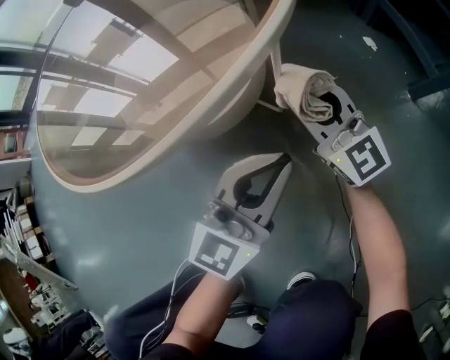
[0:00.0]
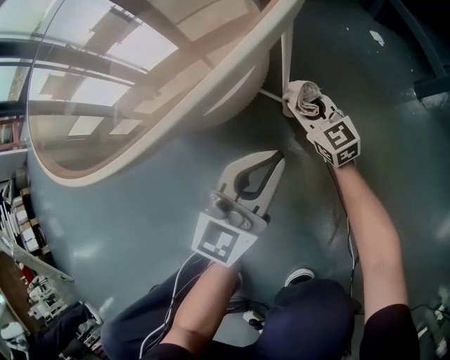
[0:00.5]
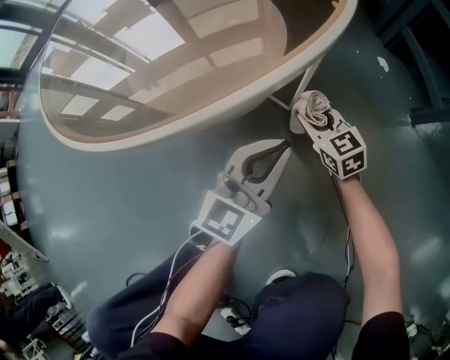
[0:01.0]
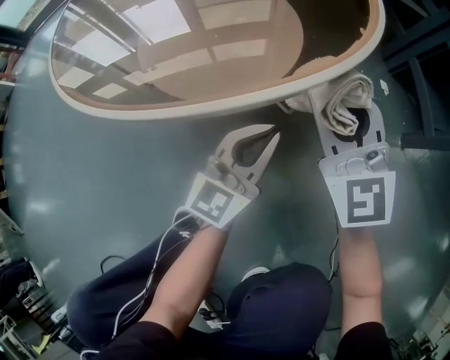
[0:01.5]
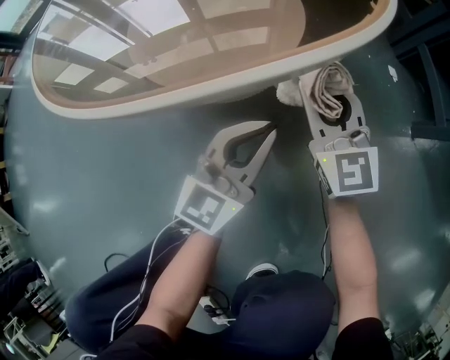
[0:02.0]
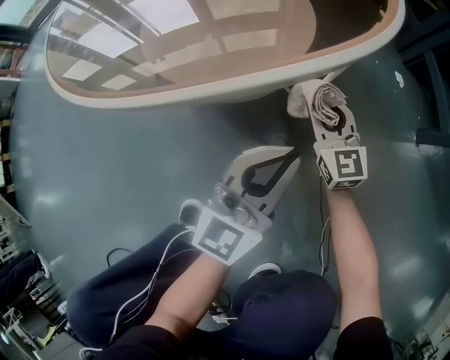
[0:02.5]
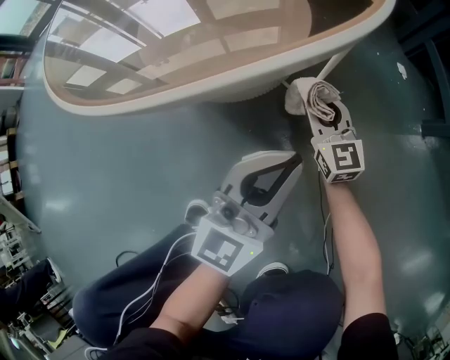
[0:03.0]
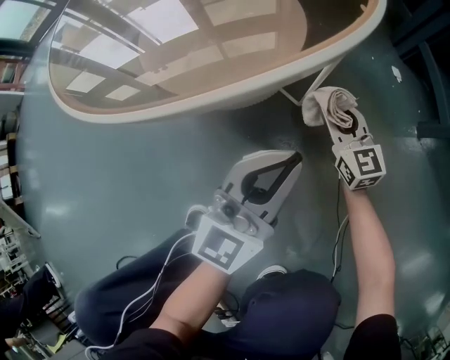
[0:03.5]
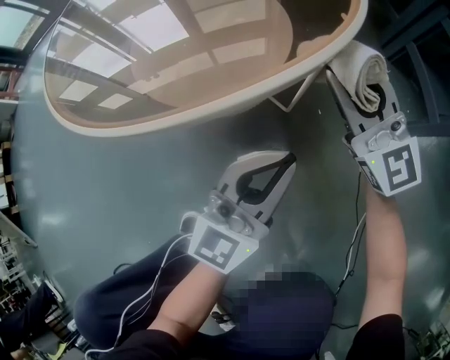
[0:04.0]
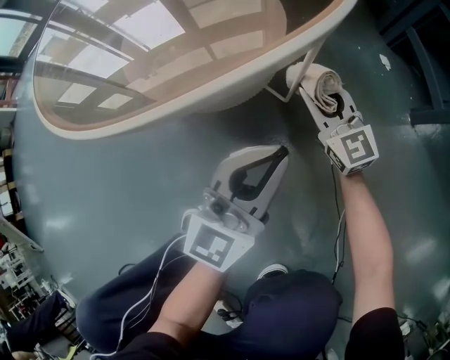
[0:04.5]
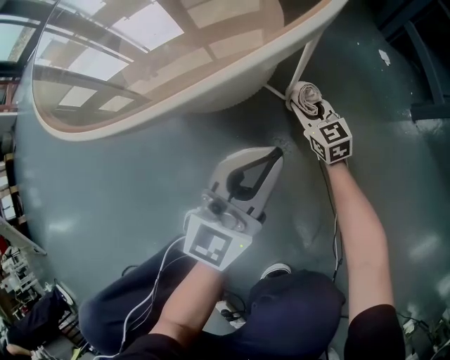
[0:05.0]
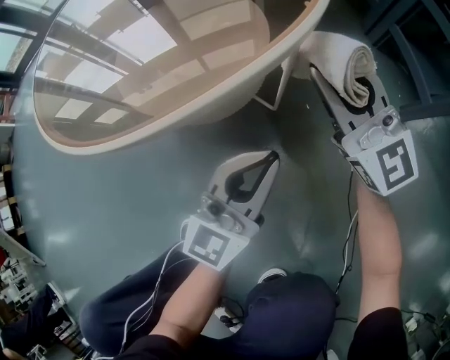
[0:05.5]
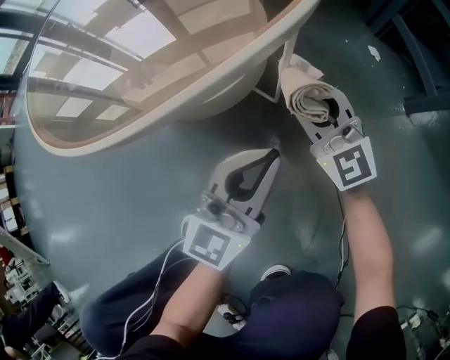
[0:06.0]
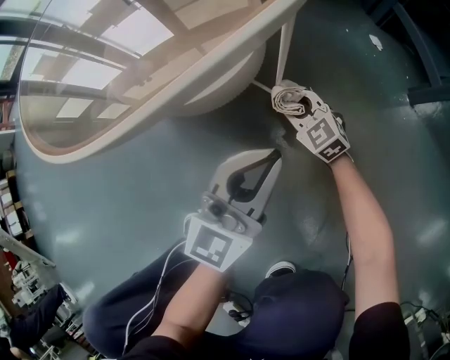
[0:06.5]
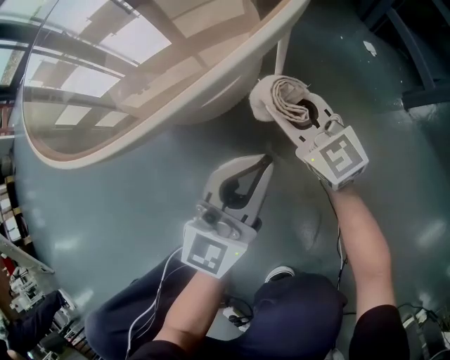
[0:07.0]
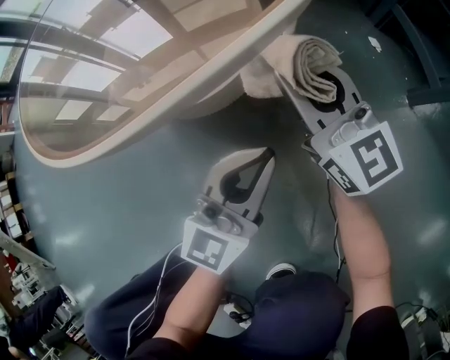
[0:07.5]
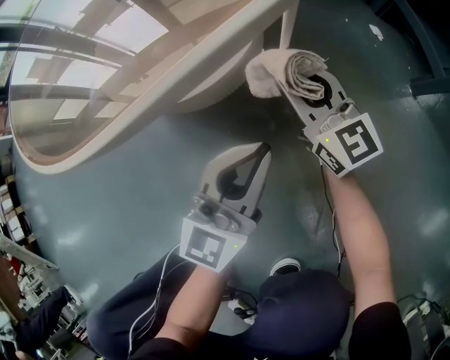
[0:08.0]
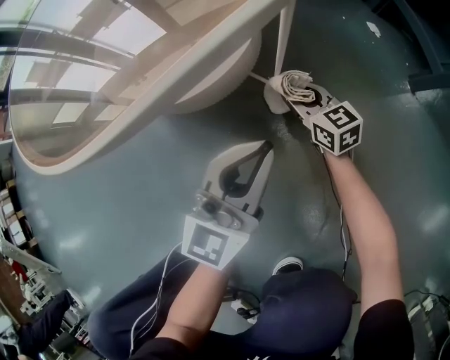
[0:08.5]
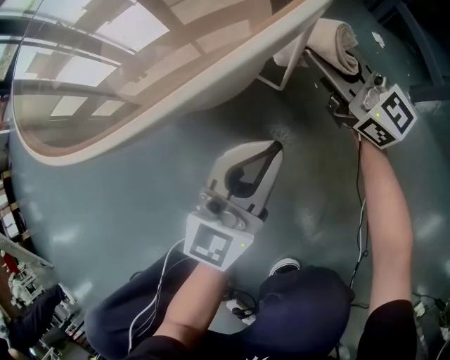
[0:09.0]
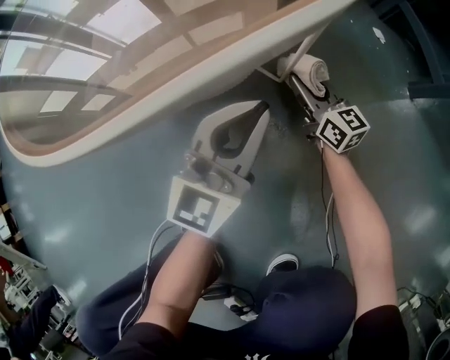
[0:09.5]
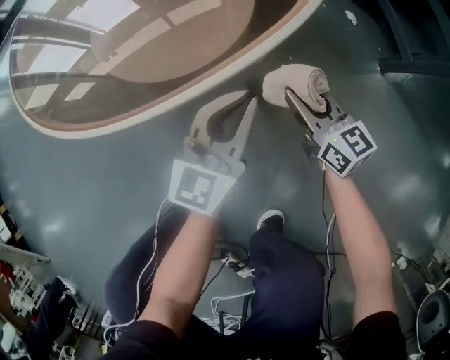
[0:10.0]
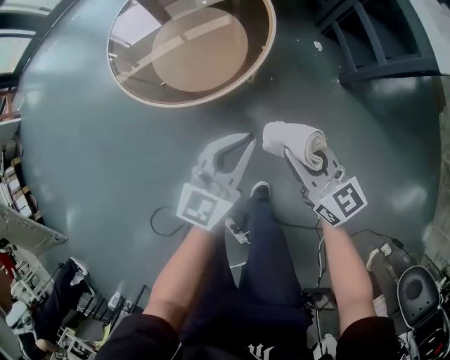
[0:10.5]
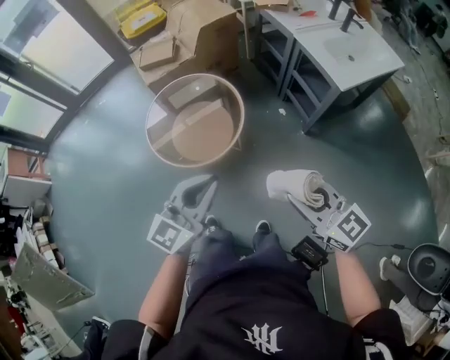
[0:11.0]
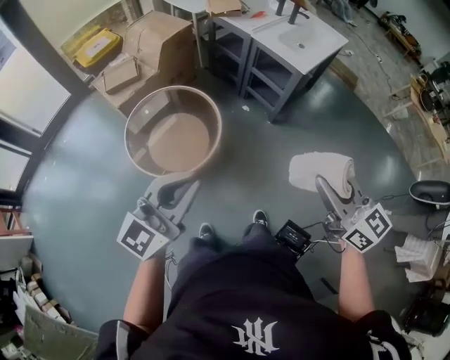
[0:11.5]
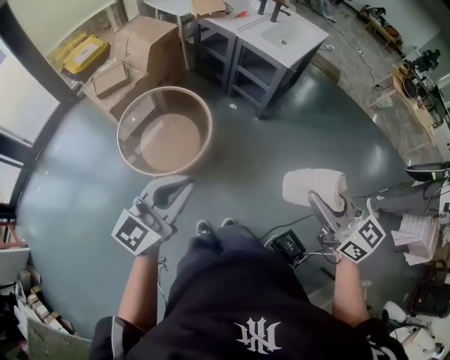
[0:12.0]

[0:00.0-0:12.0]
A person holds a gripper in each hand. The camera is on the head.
0:00.0 to 0:02.0: The left gripper is displaced to the left and downward by approximately 10 cm; the right gripper moves up and down over about 30 cm, changing direction 2 times.
0:02.0 to 0:04.0: Both grippers move upward, about 10 cm.
0:04.0 to 0:06.0: The right gripper goes up and down, some 30 cm each way, reversing 2 times.
0:06.0 to 0:08.0: The right gripper moves up and down over approximately 25 cm, changing direction 2 times, and swivels roughly 30 degrees.
0:08.0 to 0:10.0: The left gripper travels upward by some 5 cm. Meanwhile the right gripper swings up and down, roughly 20 cm each way, with 3 reversals, and swivels about 20 degrees.
0:10.0 to 0:12.0: Both grippers travel together upward, roughly 90 cm. The right gripper rotates approximately 30 degrees. The left gripper turns by some 50 degrees.

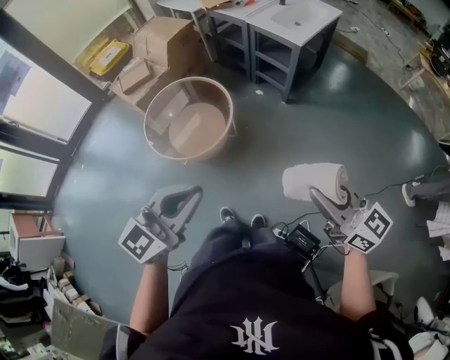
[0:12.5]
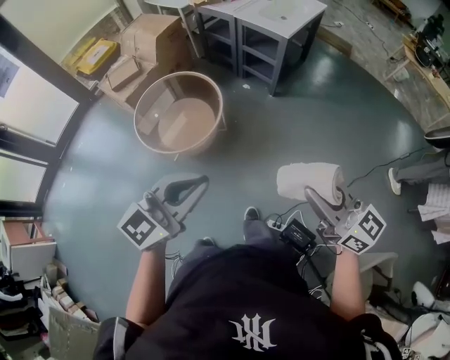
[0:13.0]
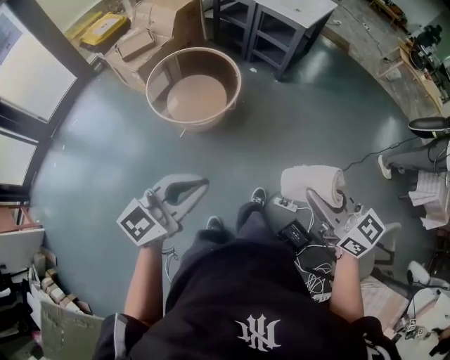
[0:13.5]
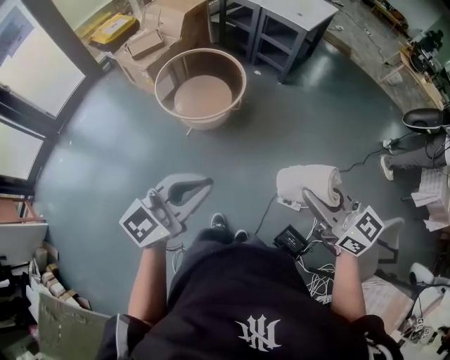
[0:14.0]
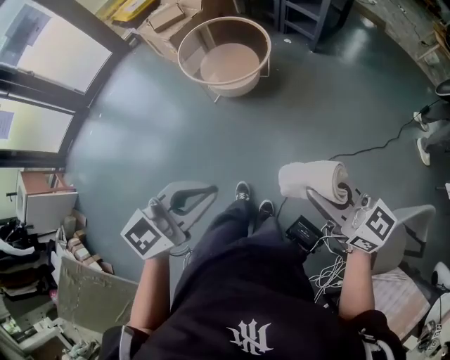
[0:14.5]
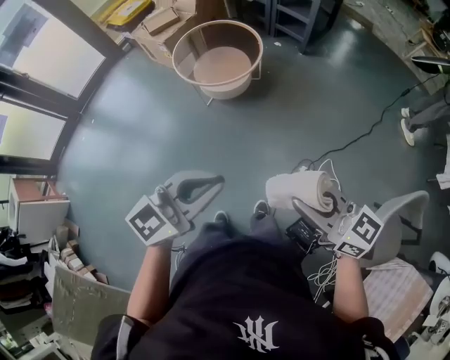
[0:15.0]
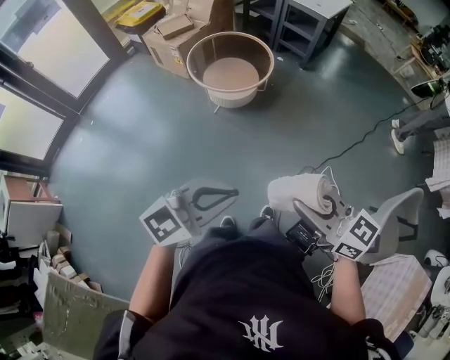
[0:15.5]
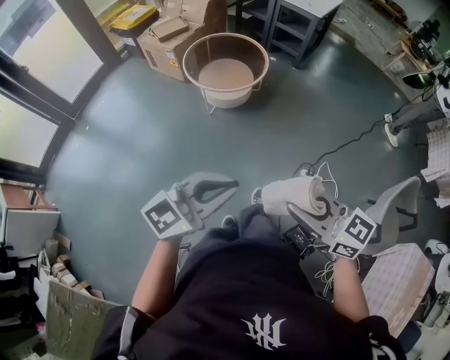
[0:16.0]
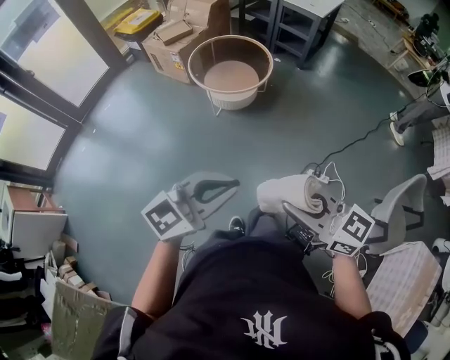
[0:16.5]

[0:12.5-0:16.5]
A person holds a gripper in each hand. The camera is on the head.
0:12.5 to 0:14.5: Both grippers travel together backward and to the left, some 40 cm.
0:14.5 to 0:16.5: The grippers both shift to the left and backward by about 25 cm.

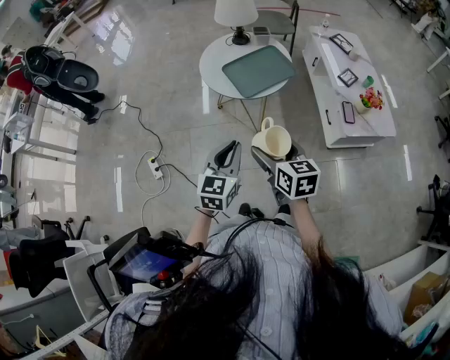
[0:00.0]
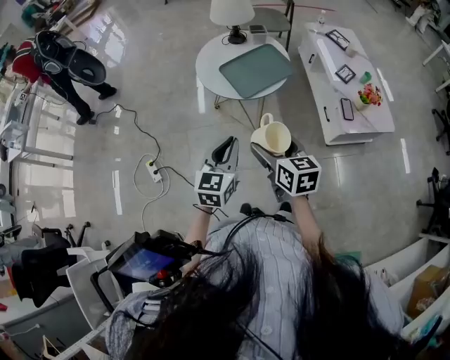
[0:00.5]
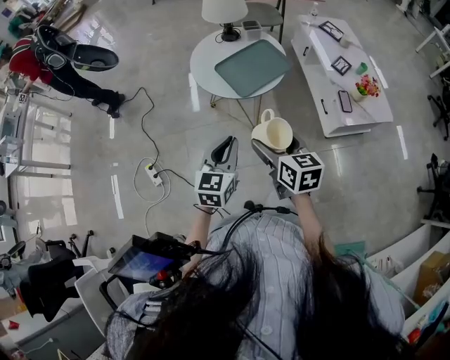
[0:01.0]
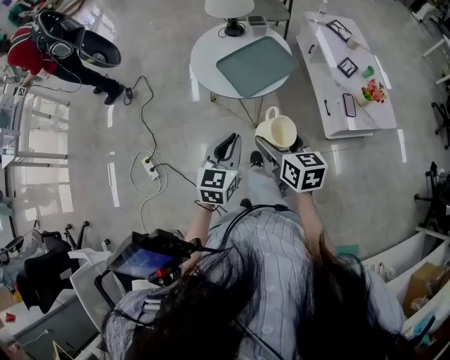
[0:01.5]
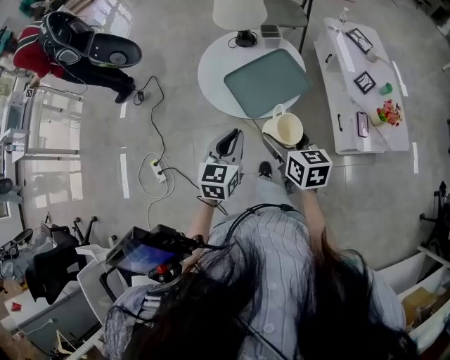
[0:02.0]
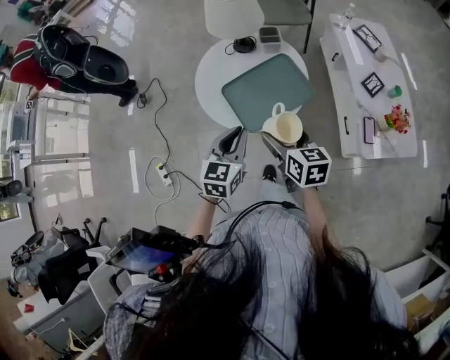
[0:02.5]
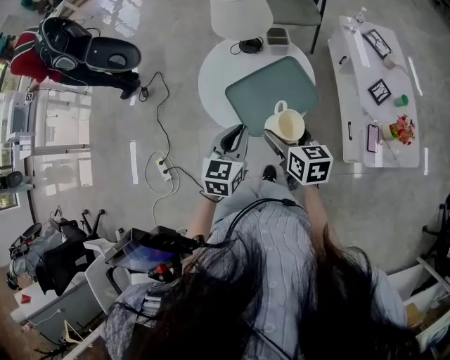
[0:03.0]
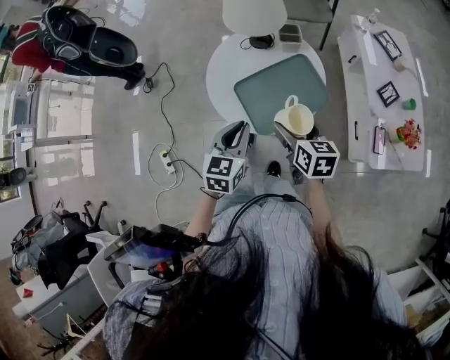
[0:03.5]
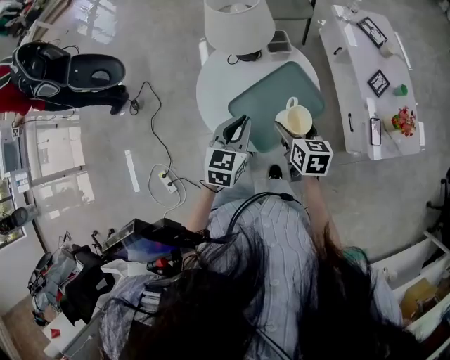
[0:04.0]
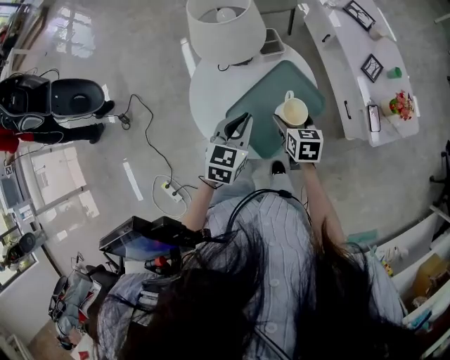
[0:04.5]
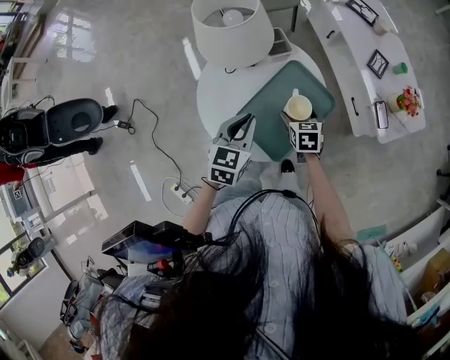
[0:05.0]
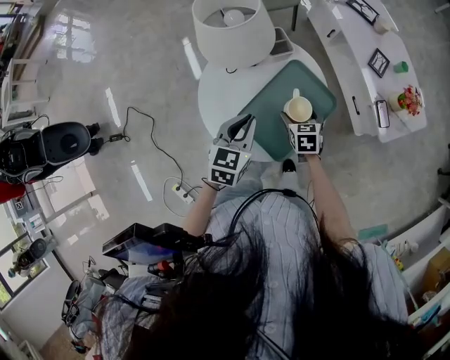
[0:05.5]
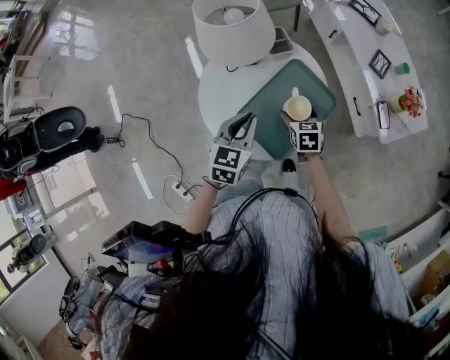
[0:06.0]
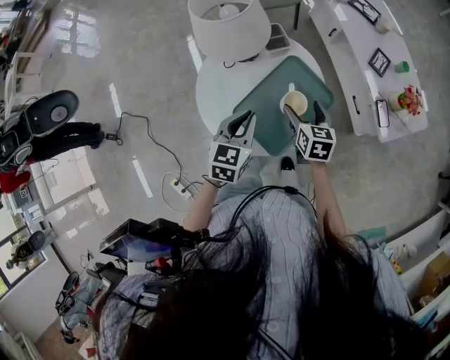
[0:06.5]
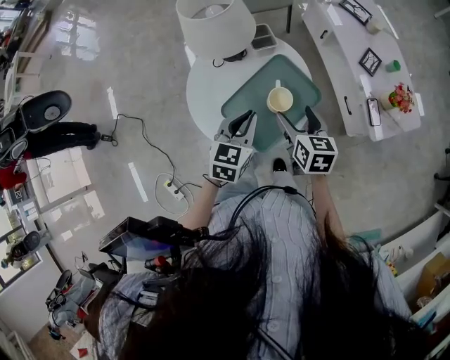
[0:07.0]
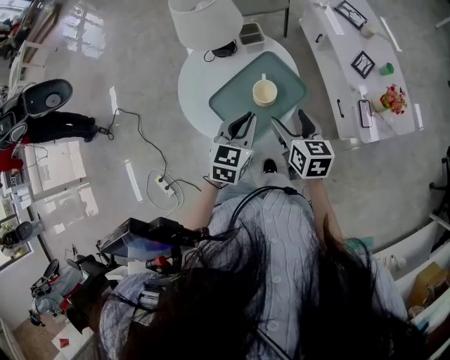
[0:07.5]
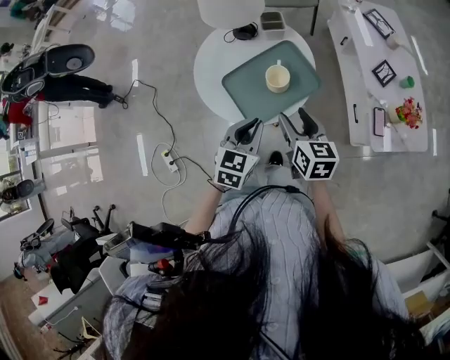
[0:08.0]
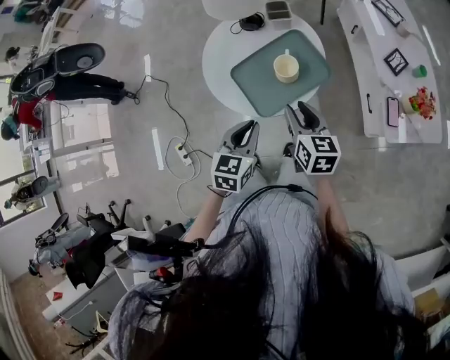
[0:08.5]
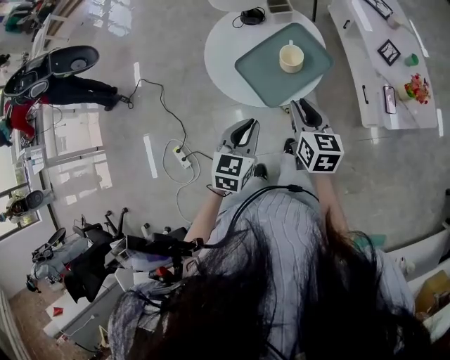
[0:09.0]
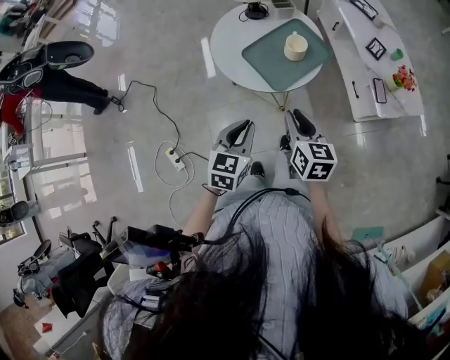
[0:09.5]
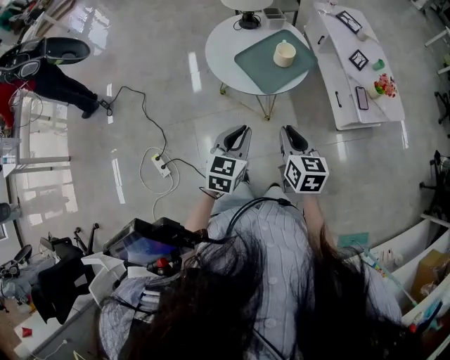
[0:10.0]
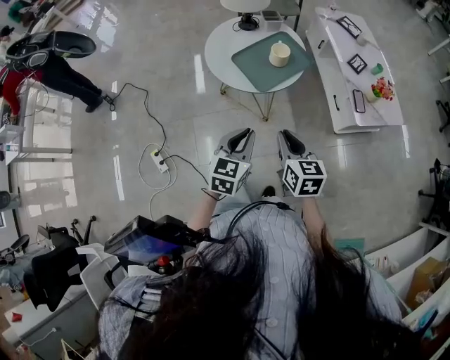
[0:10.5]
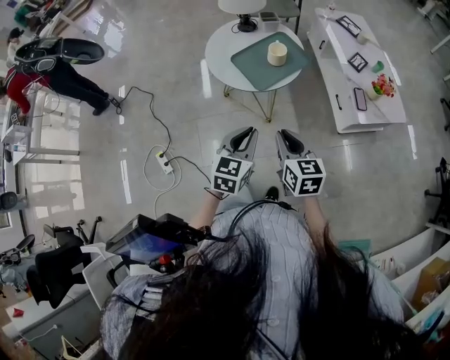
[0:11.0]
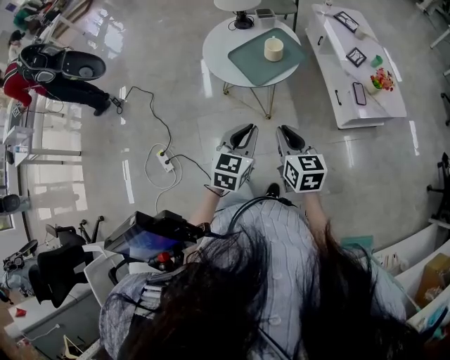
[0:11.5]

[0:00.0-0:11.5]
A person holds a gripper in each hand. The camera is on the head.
0:00.0 to 0:02.0: Both grippers travel together forward, about 20 cm.
0:02.0 to 0:04.0: The left gripper moves forward, roughly 20 cm; the right gripper travels forward and downward by about 20 cm.
0:04.0 to 0:06.0: The left gripper shifts by about 5 cm; the right gripper travels downward and forward by about 15 cm.
0:06.0 to 0:07.5: The left gripper travels to the right and backward by about 15 cm. The right gripper heads upward, backward and to the right, covering approximately 20 cm, and turns by about 20 degrees.
0:07.5 to 0:09.5: The two grippers go some 25 cm backward and to the left. The right gripper closes.
0:09.5 to 0:11.5: The left gripper shifts about 15 cm to the right and backward, while the right gripper is displaced backward and to the right by approximately 15 cm.
